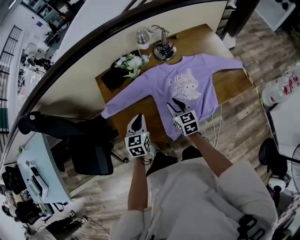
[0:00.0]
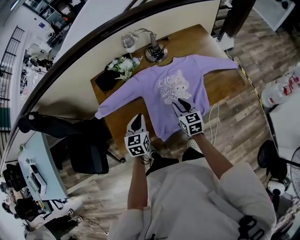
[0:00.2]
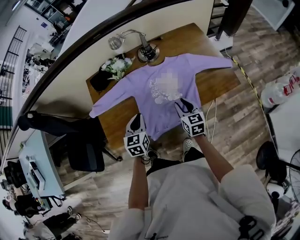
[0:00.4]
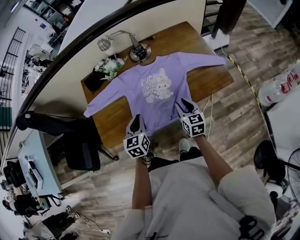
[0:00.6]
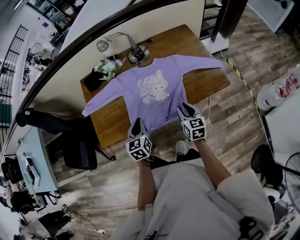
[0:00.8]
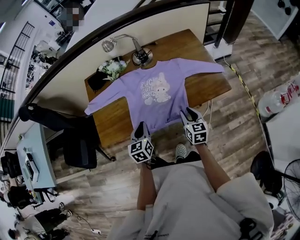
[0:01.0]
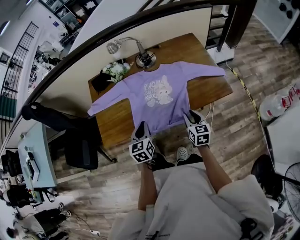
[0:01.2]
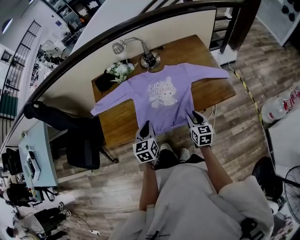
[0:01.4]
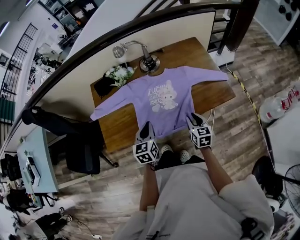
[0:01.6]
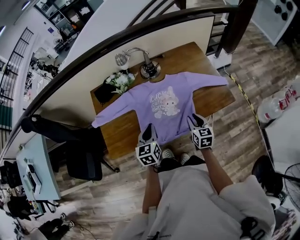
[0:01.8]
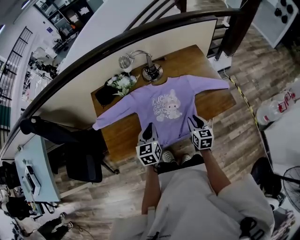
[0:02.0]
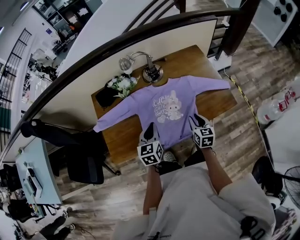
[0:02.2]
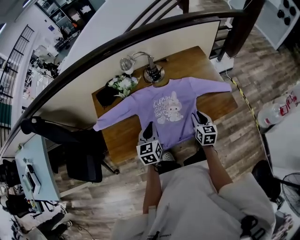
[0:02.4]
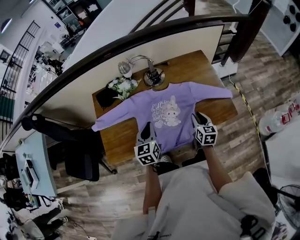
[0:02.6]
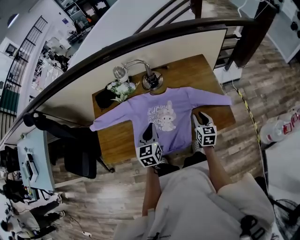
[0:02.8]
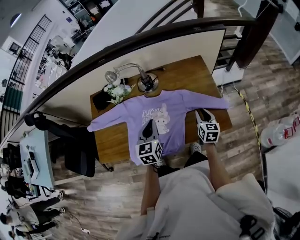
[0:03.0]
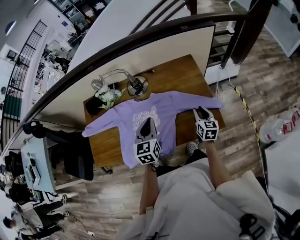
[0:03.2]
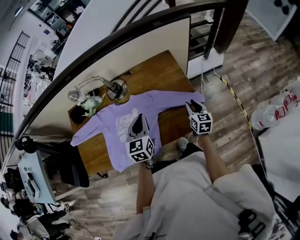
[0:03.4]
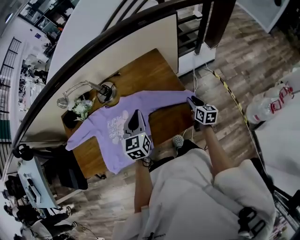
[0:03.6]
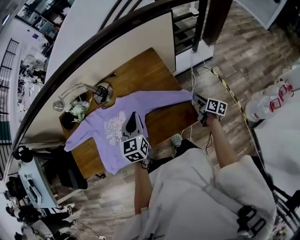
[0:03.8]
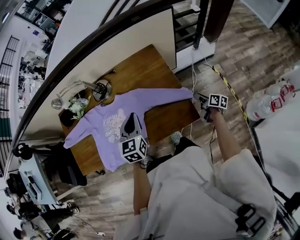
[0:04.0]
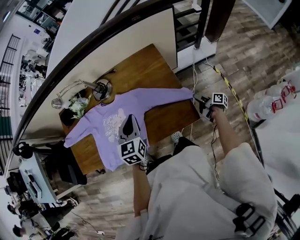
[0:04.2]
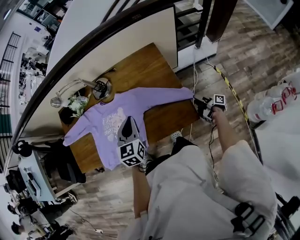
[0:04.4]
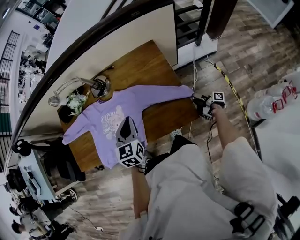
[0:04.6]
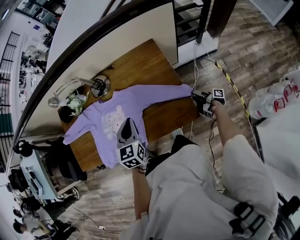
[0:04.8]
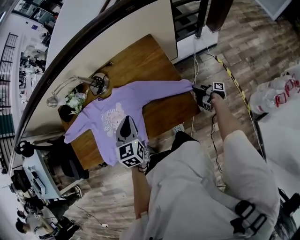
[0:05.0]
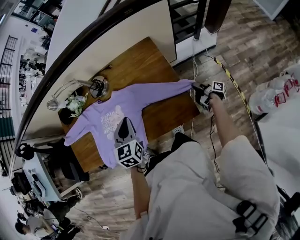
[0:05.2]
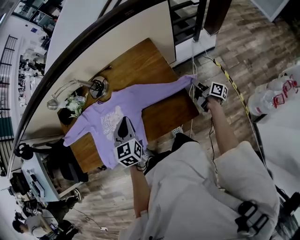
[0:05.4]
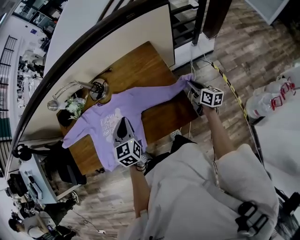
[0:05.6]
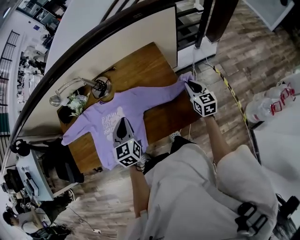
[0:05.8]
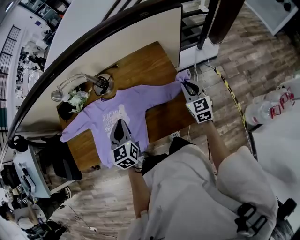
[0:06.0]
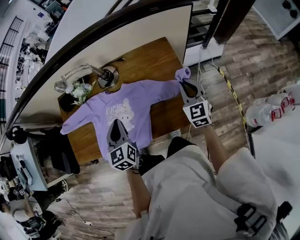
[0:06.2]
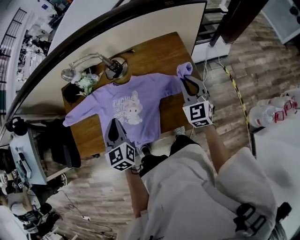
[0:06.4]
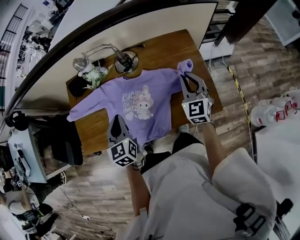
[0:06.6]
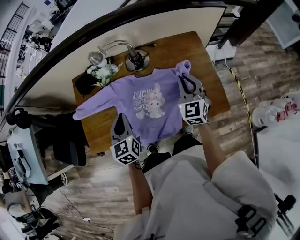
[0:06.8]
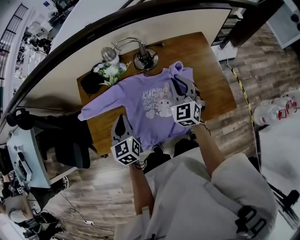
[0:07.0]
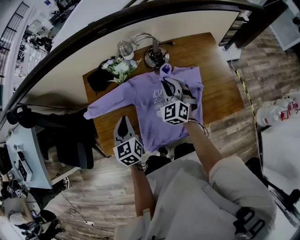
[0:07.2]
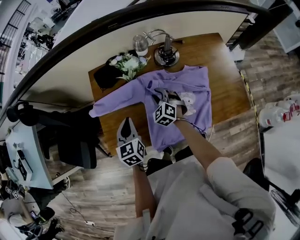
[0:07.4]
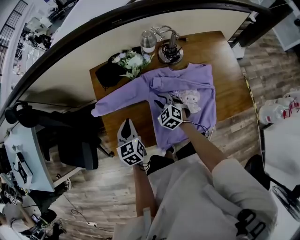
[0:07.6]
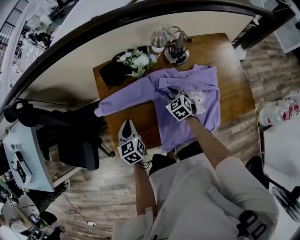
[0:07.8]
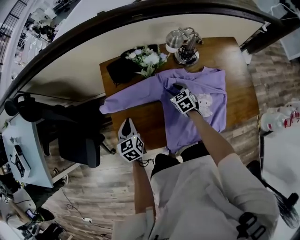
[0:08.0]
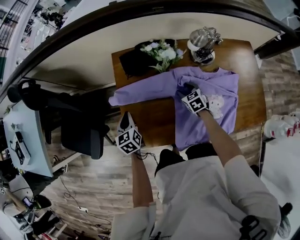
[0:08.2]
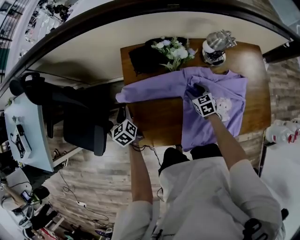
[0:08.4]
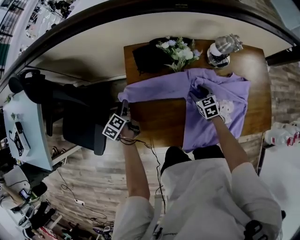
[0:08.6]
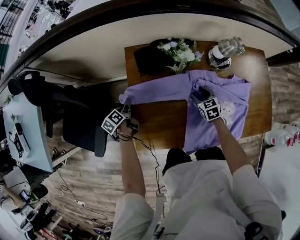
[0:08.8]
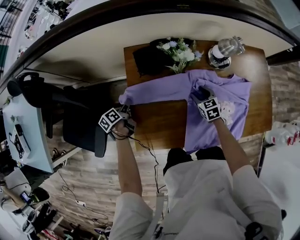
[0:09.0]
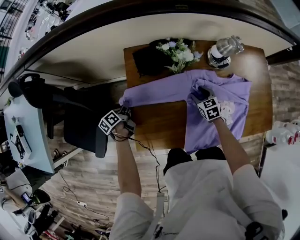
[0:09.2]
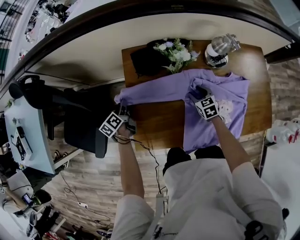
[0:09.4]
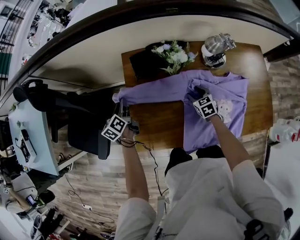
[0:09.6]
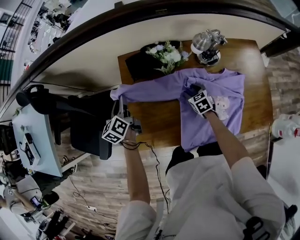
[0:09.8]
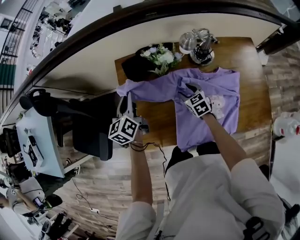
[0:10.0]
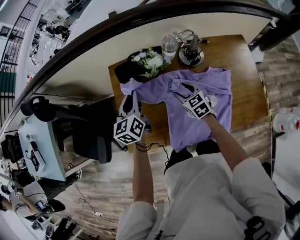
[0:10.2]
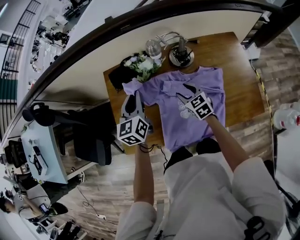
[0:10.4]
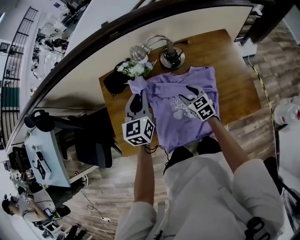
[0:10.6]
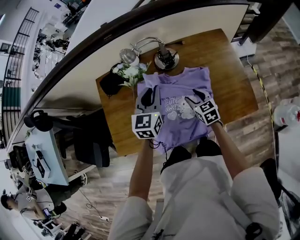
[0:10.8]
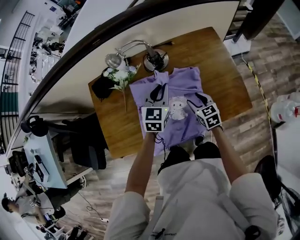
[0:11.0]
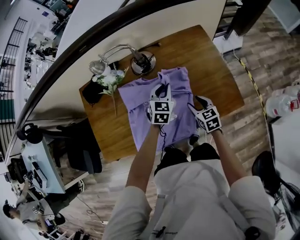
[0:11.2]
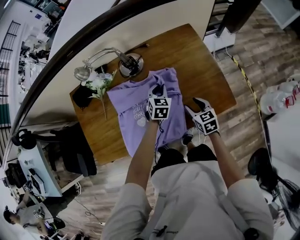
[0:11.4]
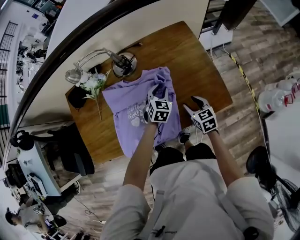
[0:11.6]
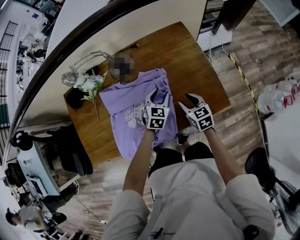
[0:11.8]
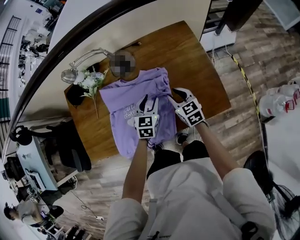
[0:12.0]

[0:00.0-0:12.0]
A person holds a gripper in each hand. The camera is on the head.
0:00.0 to 0:01.6: The grippers both shift to the right and backward by some 25 cm.
0:01.6 to 0:03.0: The right gripper travels forward and to the right by some 25 cm. The left gripper shifts roughly 20 cm forward, to the right and upward.
0:03.0 to 0:04.4: The right gripper is displaced to the right and downward by about 35 cm, twists some 80 degrees clockwise, seen from behind, and opens. Meanwhile the left gripper goes approximately 20 cm to the right.
0:04.4 to 0:06.0: The left gripper heads to the left, covering about 5 cm. Meanwhile the right gripper goes roughly 25 cm upward, rolls counterclockwise, seen from behind, by some 100 degrees, and closes up.
0:06.0 to 0:07.6: Both grippers are carried to the left, about 50 cm. The right gripper changes its angle by some 40 degrees.
0:07.6 to 0:09.0: The right gripper moves forward and downward, approximately 10 cm, and turns by about 20 degrees. The left gripper moves to the left, downward and forward, approximately 30 cm, rotates around the line of its fingers by about 50 degrees, counterclockwise from behind, and opens its fingers.
0:09.0 to 0:10.4: The right gripper shifts about 15 cm upward and to the right, while the left gripper goes approximately 40 cm upward and to the right, twists roughly 50 degrees clockwise, seen from behind, and closes up.
0:10.4 to 0:12.0: The left gripper shifts roughly 40 cm to the right and downward, changes its angle by approximately 30 degrees, and opens up. The right gripper is displaced to the right by roughly 25 cm.

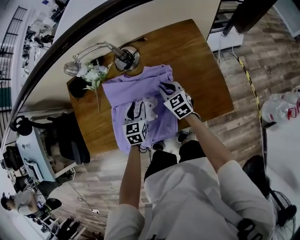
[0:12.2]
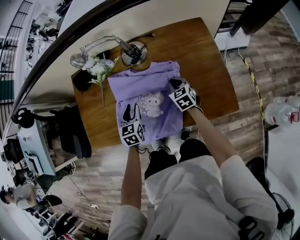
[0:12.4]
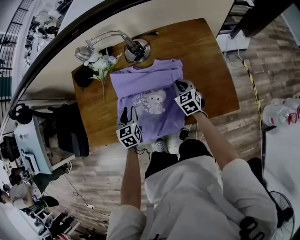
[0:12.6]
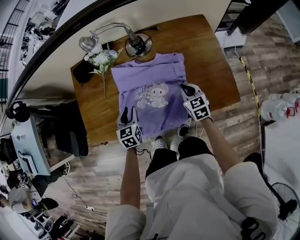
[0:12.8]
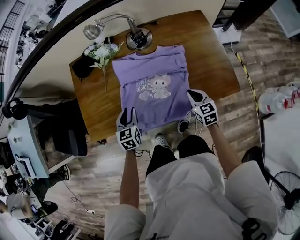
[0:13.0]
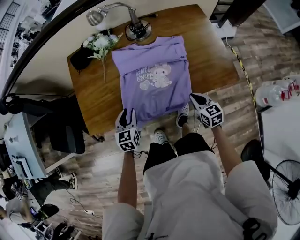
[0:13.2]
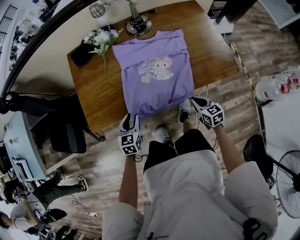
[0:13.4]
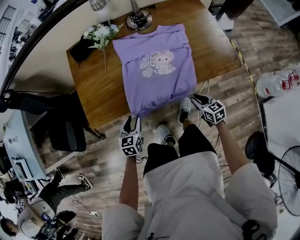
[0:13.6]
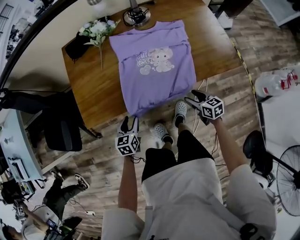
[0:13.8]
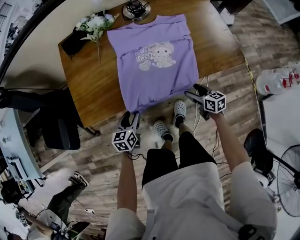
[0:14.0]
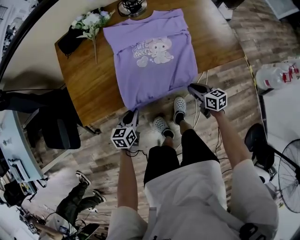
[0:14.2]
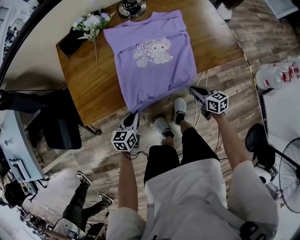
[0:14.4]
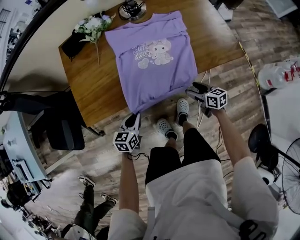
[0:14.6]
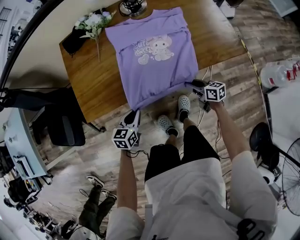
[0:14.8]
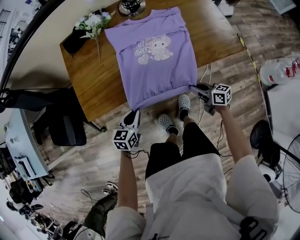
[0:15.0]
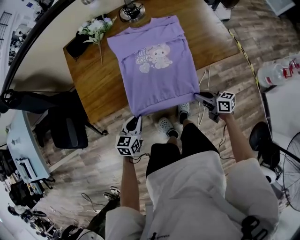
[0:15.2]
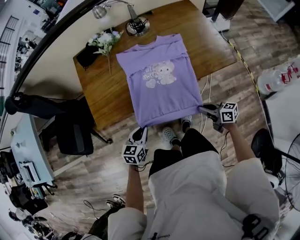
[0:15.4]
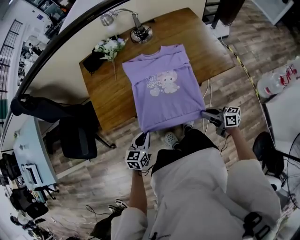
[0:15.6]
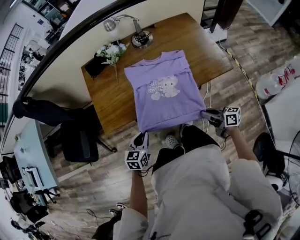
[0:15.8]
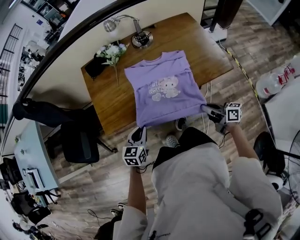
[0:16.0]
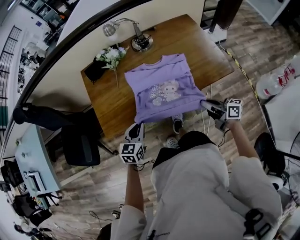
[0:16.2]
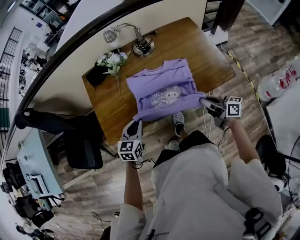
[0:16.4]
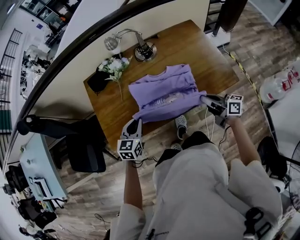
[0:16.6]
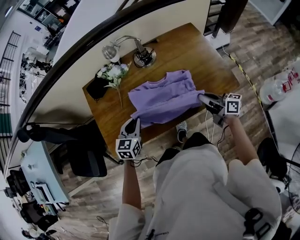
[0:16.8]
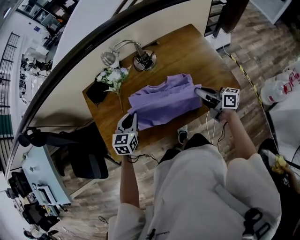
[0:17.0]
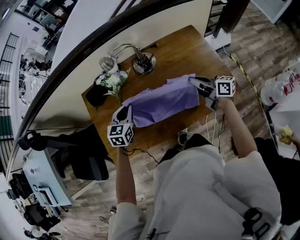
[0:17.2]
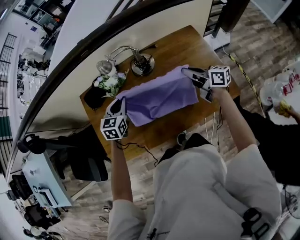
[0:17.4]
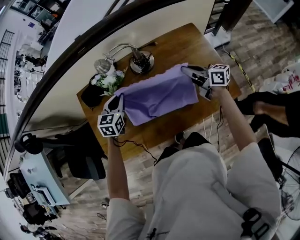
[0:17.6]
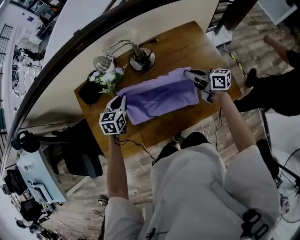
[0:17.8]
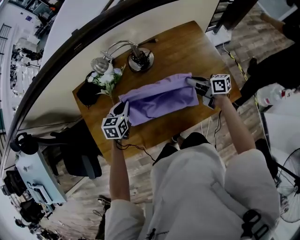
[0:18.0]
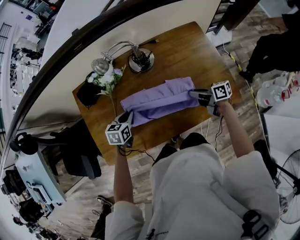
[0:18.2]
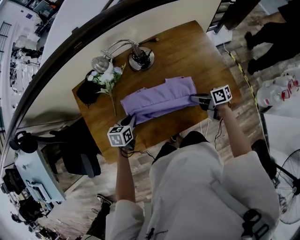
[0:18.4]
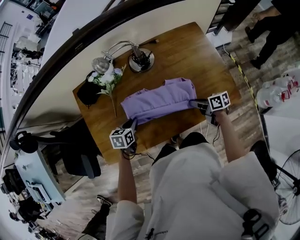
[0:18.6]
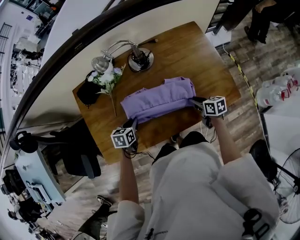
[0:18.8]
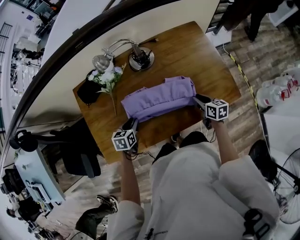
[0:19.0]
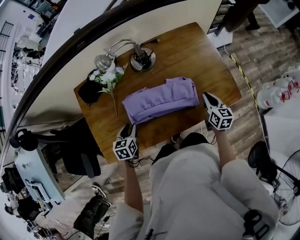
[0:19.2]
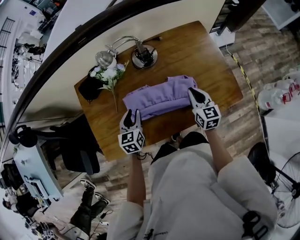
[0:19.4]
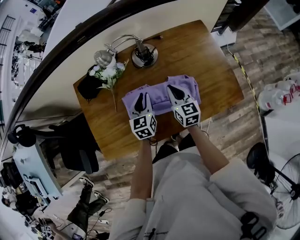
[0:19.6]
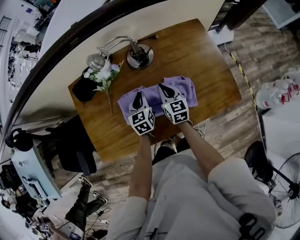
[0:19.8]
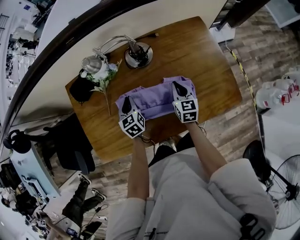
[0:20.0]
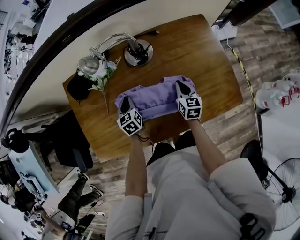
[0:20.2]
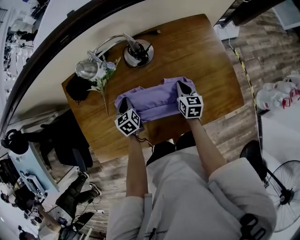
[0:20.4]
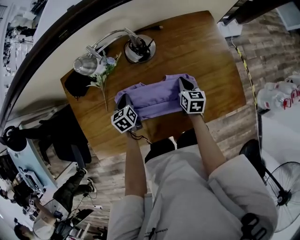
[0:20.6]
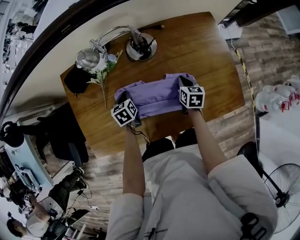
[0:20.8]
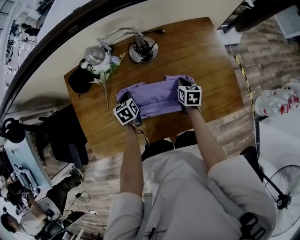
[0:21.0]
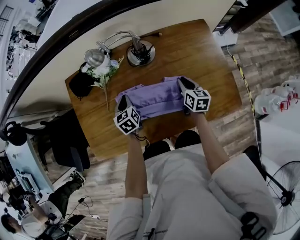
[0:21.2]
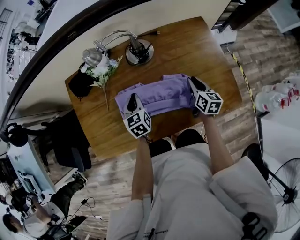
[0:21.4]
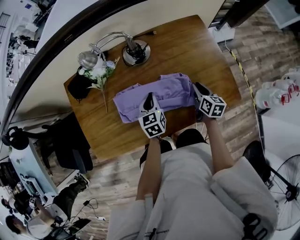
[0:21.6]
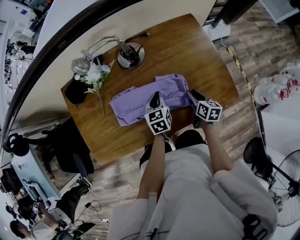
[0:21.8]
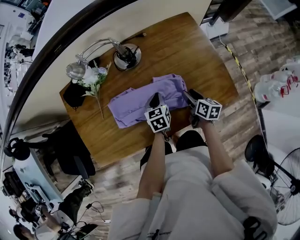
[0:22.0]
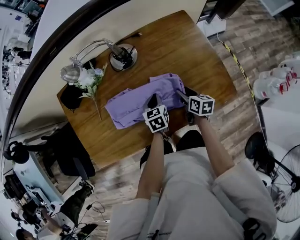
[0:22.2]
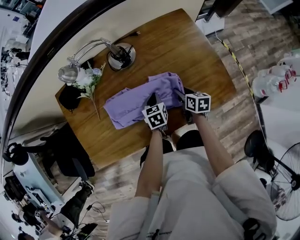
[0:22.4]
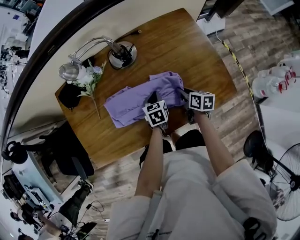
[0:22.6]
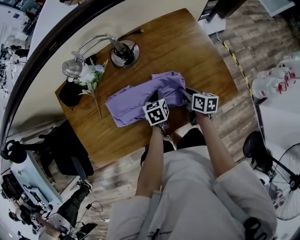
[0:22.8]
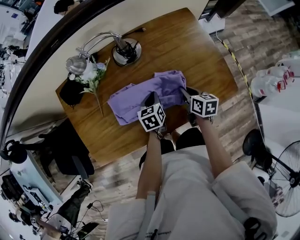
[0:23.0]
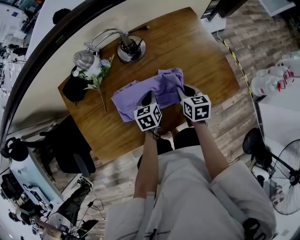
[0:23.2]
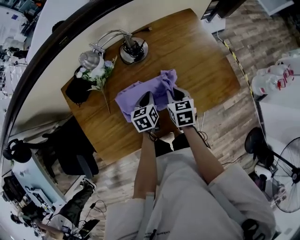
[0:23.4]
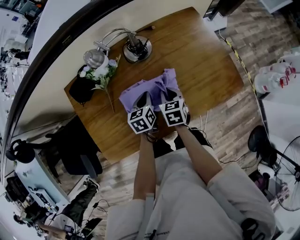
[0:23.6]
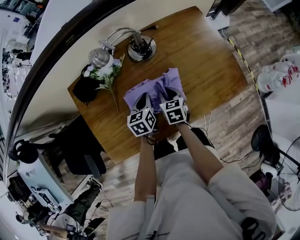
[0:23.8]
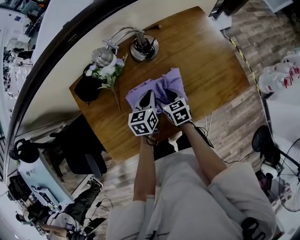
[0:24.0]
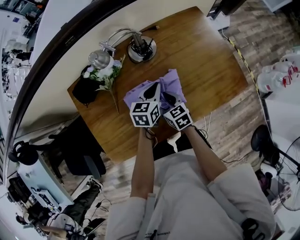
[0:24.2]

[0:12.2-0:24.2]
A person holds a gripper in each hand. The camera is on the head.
0:12.2 to 0:13.8: The right gripper goes about 30 cm backward and downward, rotates roughly 30 degrees, and opens. The left gripper is displaced to the left, backward and downward by roughly 35 cm.
0:13.8 to 0:15.2: The left gripper is displaced upward by approximately 5 cm, and closes up; the right gripper goes roughly 5 cm backward, turns by some 30 degrees, and closes.
0:15.2 to 0:16.6: The right gripper goes approximately 25 cm upward and forward; the left gripper shifts about 20 cm forward and upward.
0:16.6 to 0:18.2: Both grippers travel together forward and downward, some 20 cm. The right gripper turns by roughly 20 degrees; the left gripper turns by some 20 degrees.
0:18.2 to 0:19.8: The right gripper travels to the left and forward by roughly 15 cm, and turns by some 60 degrees; the left gripper goes roughly 10 cm to the right, rotates some 30 degrees, and opens and closes again.
0:19.8 to 0:21.2: The left gripper shifts about 10 cm to the left, while the right gripper shifts roughly 10 cm to the right.
0:21.2 to 0:22.6: The left gripper is displaced to the right by some 20 cm, and swivels about 20 degrees. The right gripper goes roughly 10 cm backward and downward, turns by roughly 20 degrees, and opens, then closes again.
0:22.6 to 0:24.2: The right gripper shifts approximately 25 cm to the left, changes its angle by some 30 degrees, and opens. Meanwhile the left gripper heads upward and to the left, covering some 15 cm, and swivels roughly 30 degrees.
